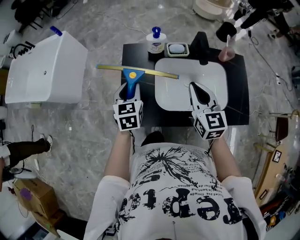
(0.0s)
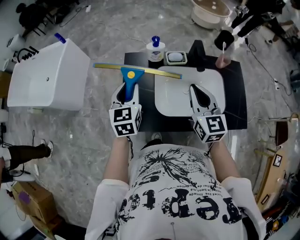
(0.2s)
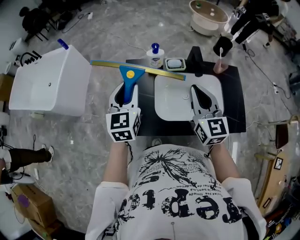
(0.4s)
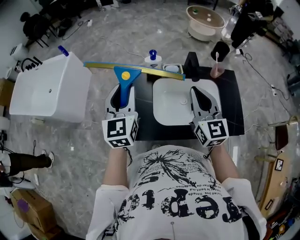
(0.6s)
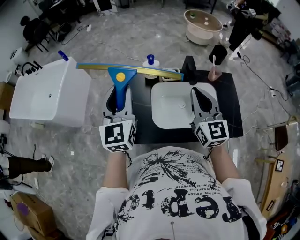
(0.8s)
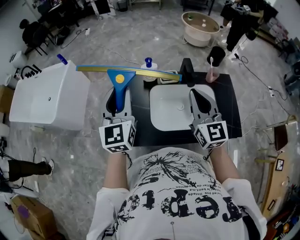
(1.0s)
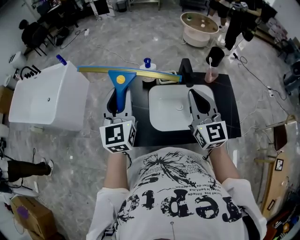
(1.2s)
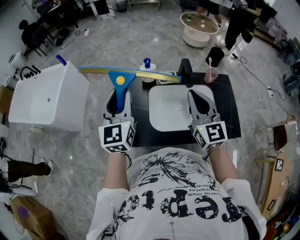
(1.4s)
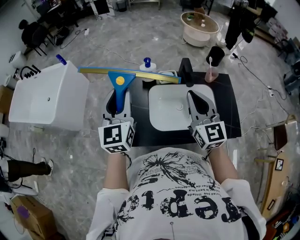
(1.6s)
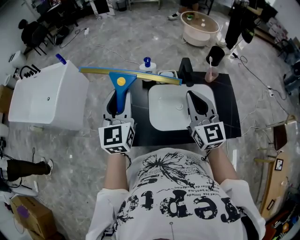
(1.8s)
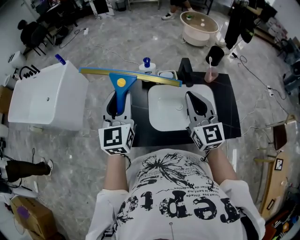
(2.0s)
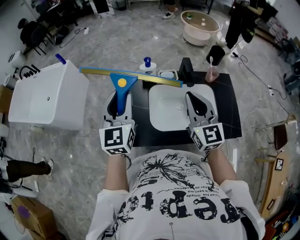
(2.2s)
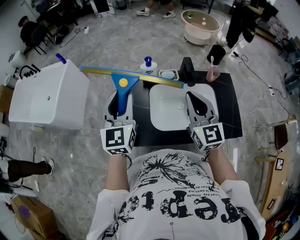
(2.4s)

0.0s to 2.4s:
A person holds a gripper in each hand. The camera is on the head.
0.0s to 1.2s: The left gripper is displaced upward by approximately 25 cm, and angles its fingers upward, by some 30 degrees, while the right gripper shifts roughly 15 cm upward.
1.2s to 2.4s: The grippers stay close to where they were, moving slightly.

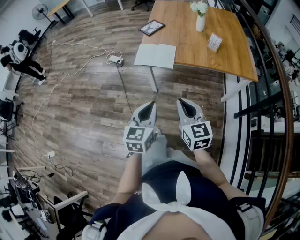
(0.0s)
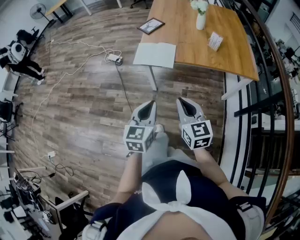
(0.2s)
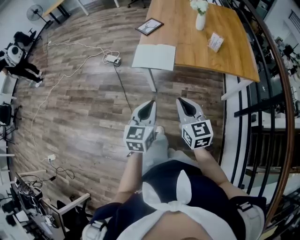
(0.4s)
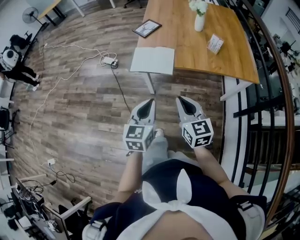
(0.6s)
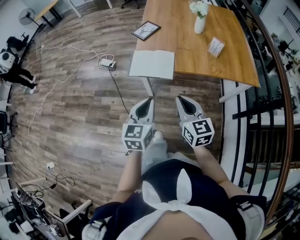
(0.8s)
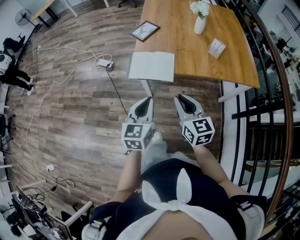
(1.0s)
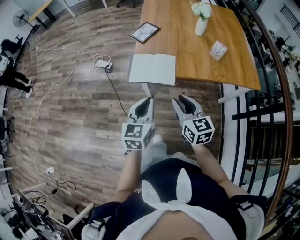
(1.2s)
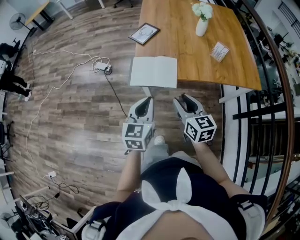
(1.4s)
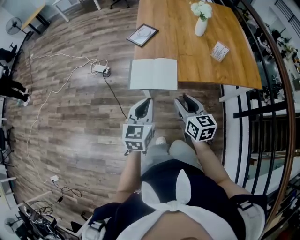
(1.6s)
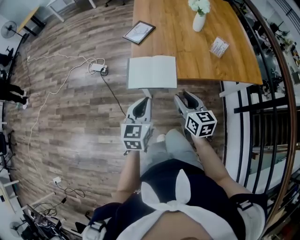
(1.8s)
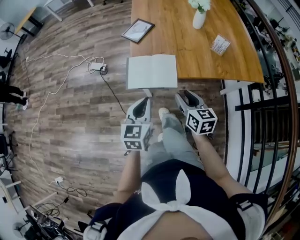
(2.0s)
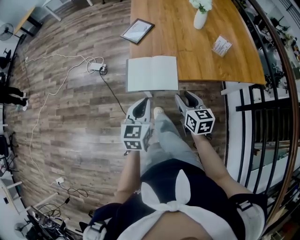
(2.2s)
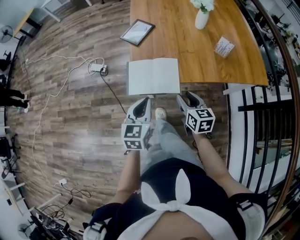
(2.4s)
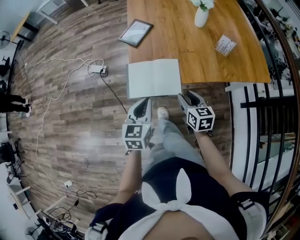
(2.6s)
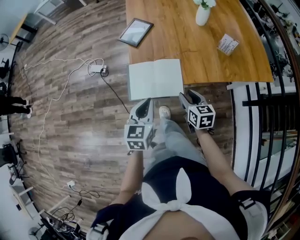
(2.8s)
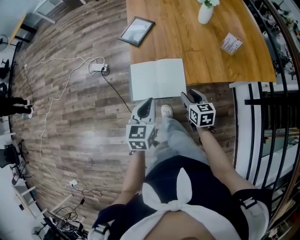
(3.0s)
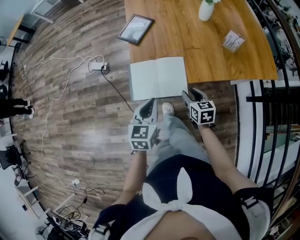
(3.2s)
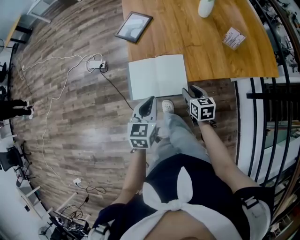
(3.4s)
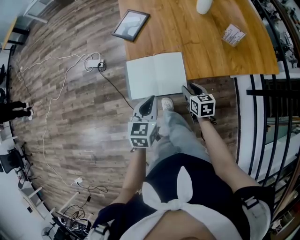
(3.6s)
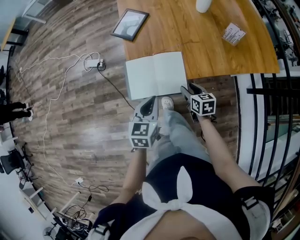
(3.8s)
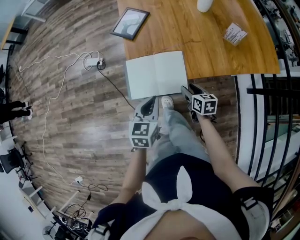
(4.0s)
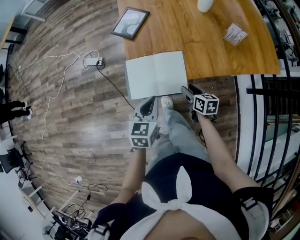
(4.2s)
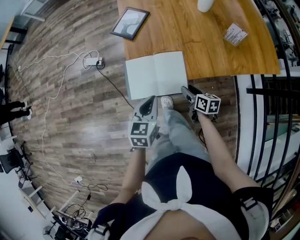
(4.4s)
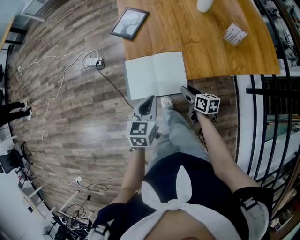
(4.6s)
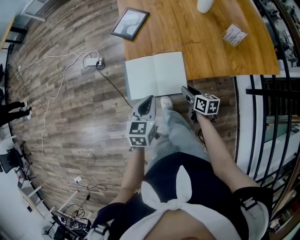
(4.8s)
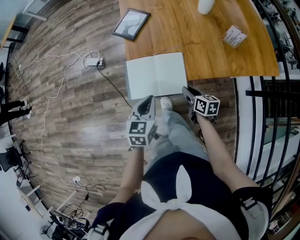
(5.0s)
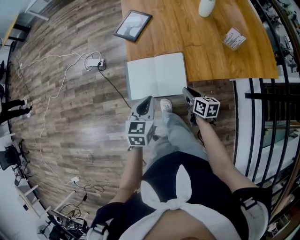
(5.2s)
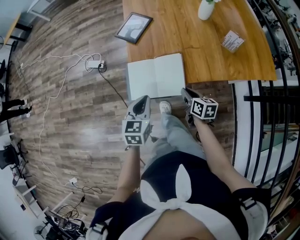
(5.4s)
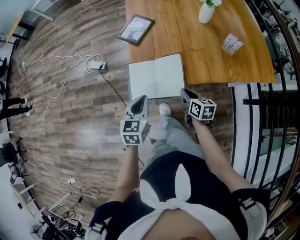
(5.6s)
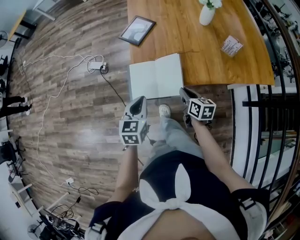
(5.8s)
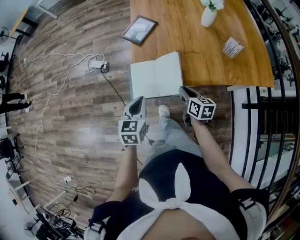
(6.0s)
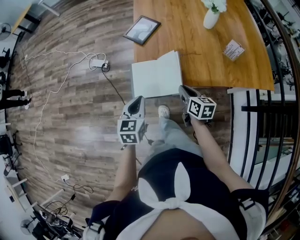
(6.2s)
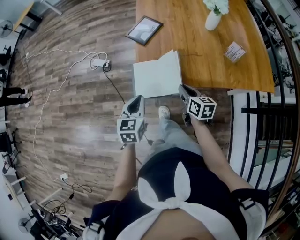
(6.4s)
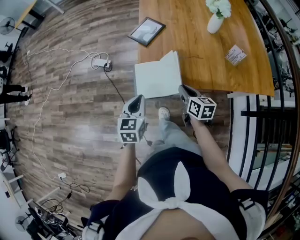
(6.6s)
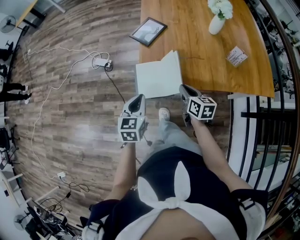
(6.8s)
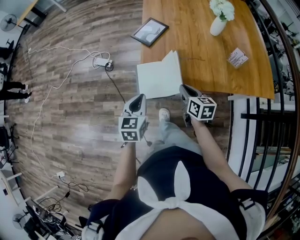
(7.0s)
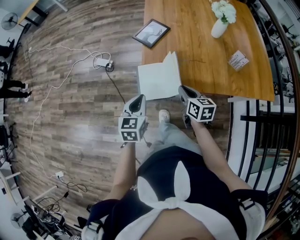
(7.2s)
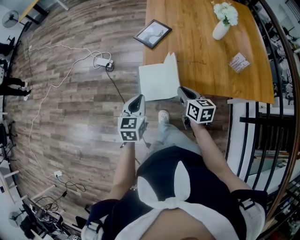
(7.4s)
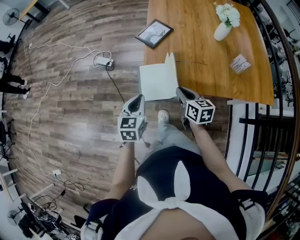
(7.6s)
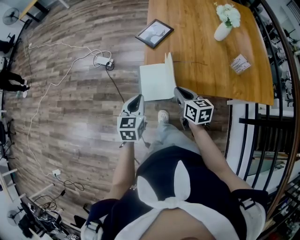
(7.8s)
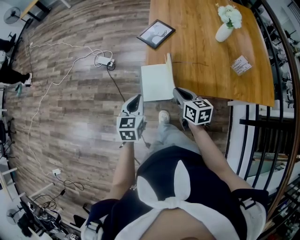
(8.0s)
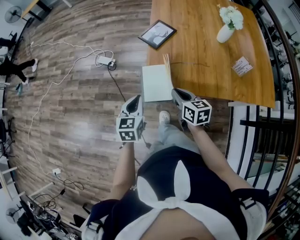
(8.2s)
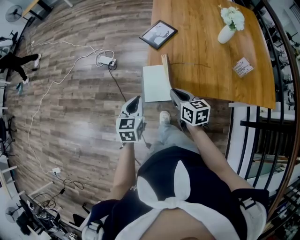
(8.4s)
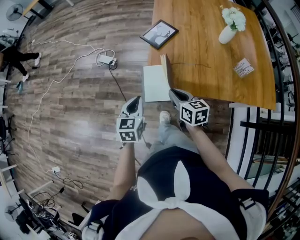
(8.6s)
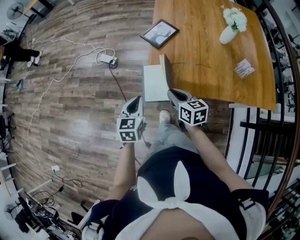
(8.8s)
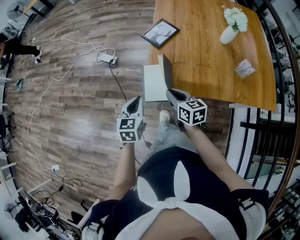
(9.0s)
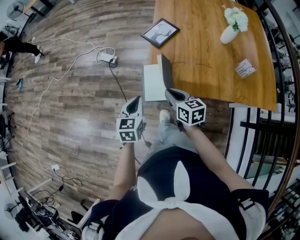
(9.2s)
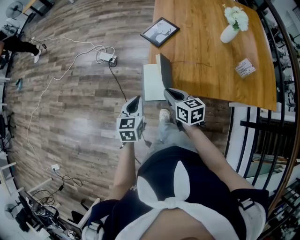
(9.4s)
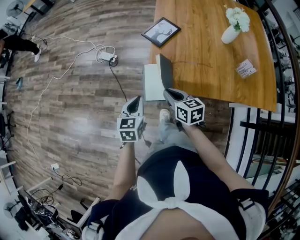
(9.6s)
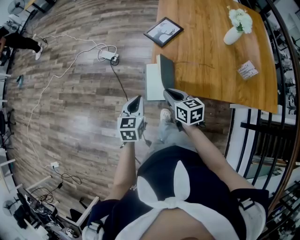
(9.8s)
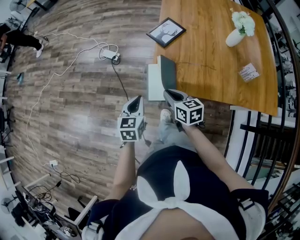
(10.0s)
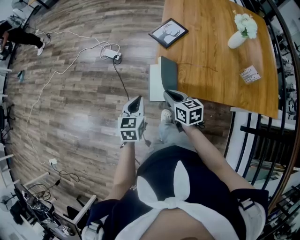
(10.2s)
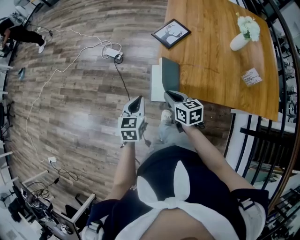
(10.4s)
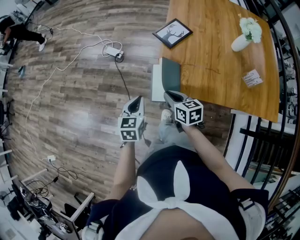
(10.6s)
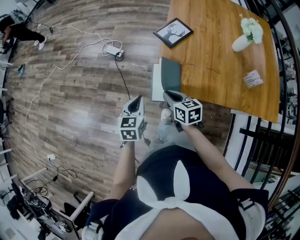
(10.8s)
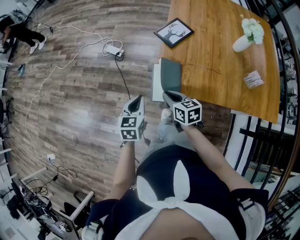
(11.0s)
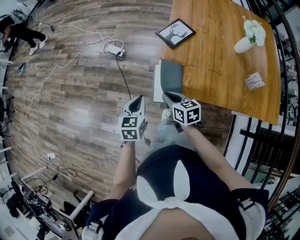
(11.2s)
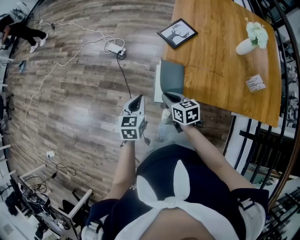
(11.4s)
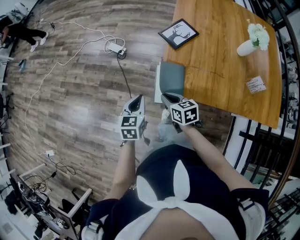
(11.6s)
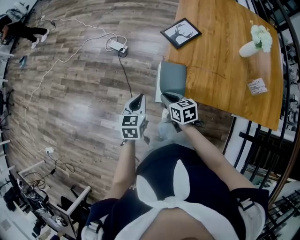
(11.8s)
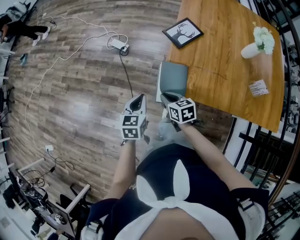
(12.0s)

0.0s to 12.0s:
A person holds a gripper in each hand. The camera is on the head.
0.0s to 1.6s: Both grippers move forward, roughly 25 cm. The right gripper opens its fingers.
1.6s to 3.0s: The right gripper goes some 20 cm downward and forward, while the left gripper shifts roughly 15 cm forward and downward.
3.0s to 4.4s: The left gripper moves downward, some 5 cm. Meanwhile the right gripper shifts roughly 10 cm downward, and turns by roughly 20 degrees.
4.4s to 6.0s: The left gripper shifts by roughly 5 cm; the right gripper heads upward, covering some 10 cm, and closes its fingers.
6.0s to 7.6s: The left gripper travels to the left by some 5 cm; the right gripper moves to the left and upward, some 10 cm.
7.6s to 9.0s: The right gripper moves to the left, about 5 cm.
9.0s to 10.4s: The right gripper ends up roughly 5 cm from where it was.
10.4s to 12.0s: The right gripper moves downward, about 5 cm.

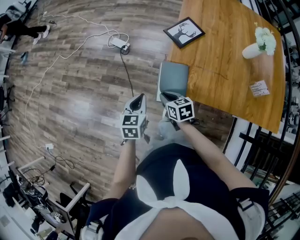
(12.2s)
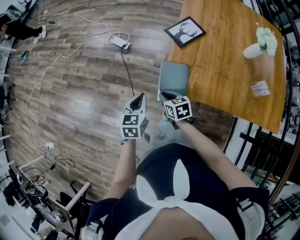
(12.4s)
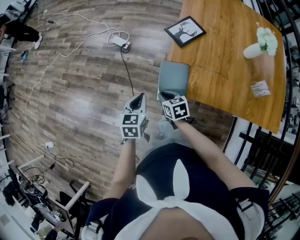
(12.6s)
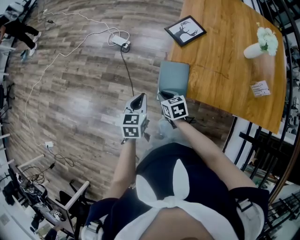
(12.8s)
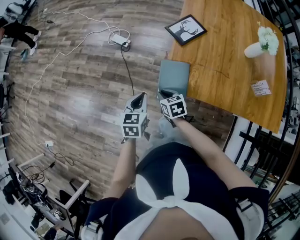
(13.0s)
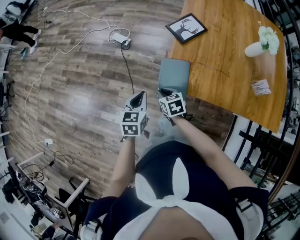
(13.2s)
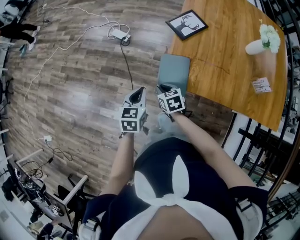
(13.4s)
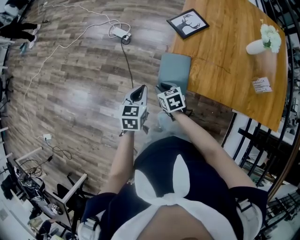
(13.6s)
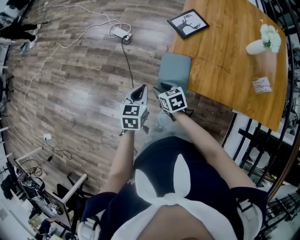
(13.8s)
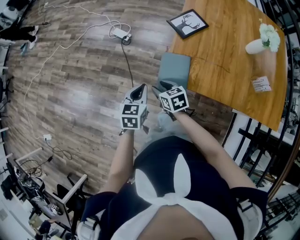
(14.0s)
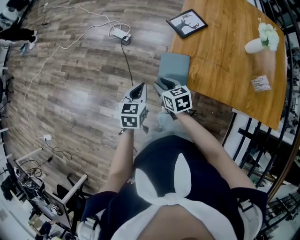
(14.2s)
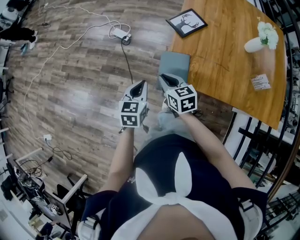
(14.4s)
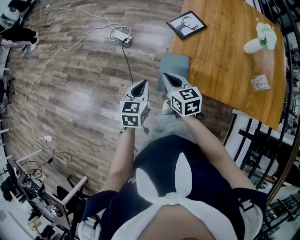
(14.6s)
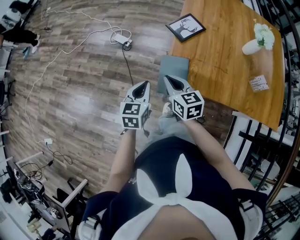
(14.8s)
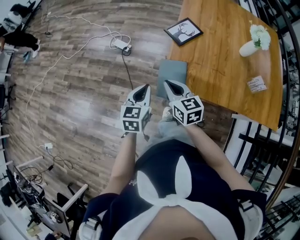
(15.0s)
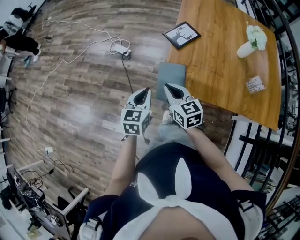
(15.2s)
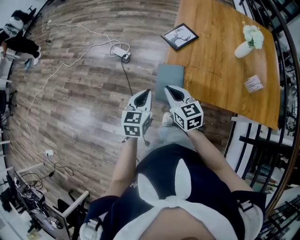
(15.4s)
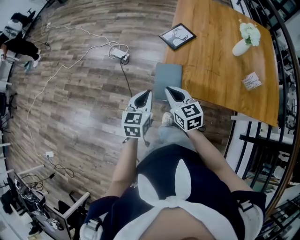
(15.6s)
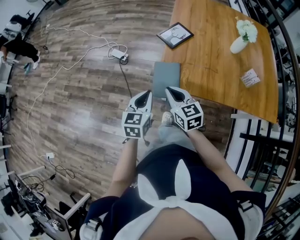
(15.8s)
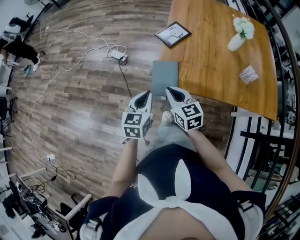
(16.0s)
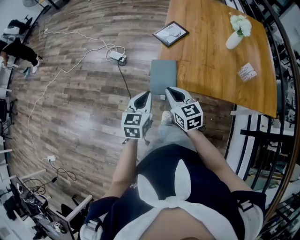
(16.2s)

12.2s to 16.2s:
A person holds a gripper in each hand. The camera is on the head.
12.2s to 13.6s: The grippers stay close to where they were, moving slightly.
13.6s to 14.8s: The left gripper goes roughly 5 cm upward, while the right gripper is displaced upward by some 15 cm, swivels some 30 degrees, and closes its fingers.
14.8s to 16.2s: Both grippers move backward, roughly 10 cm.

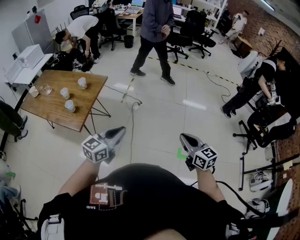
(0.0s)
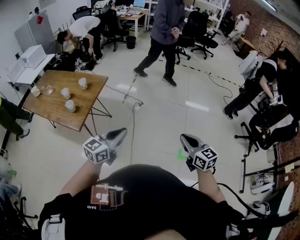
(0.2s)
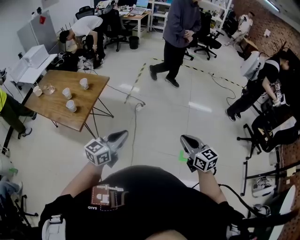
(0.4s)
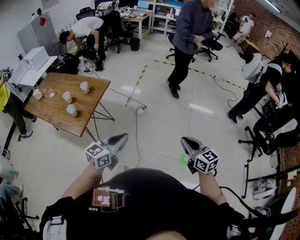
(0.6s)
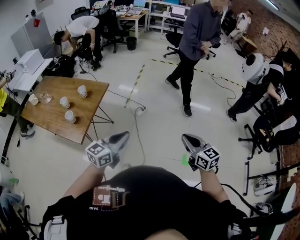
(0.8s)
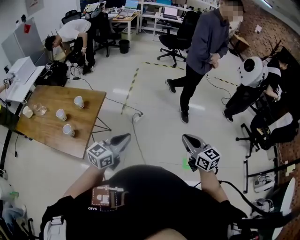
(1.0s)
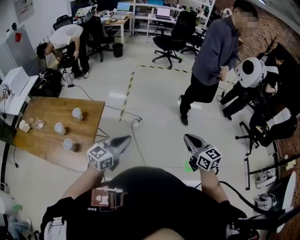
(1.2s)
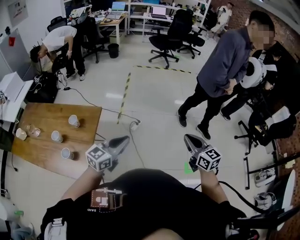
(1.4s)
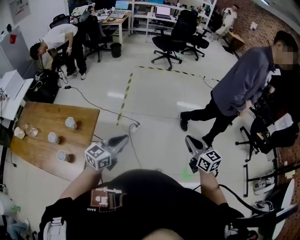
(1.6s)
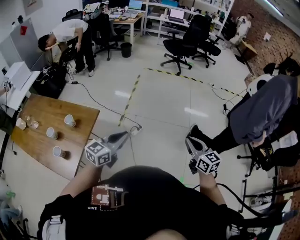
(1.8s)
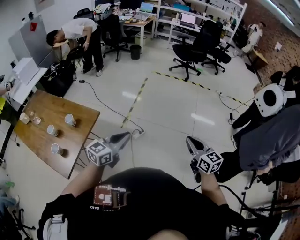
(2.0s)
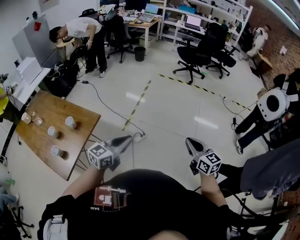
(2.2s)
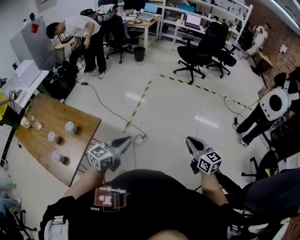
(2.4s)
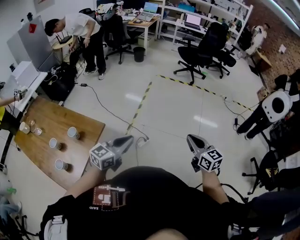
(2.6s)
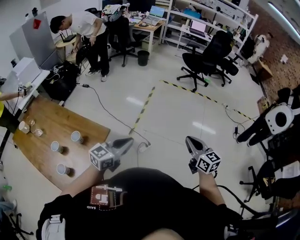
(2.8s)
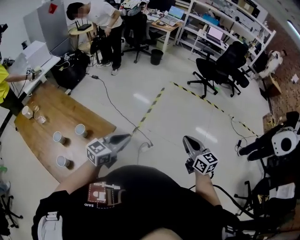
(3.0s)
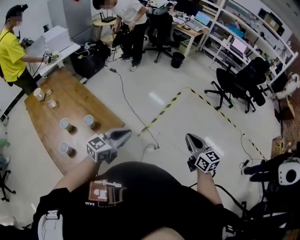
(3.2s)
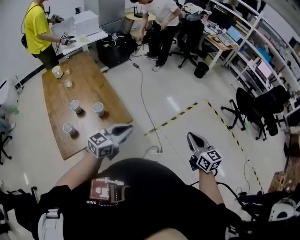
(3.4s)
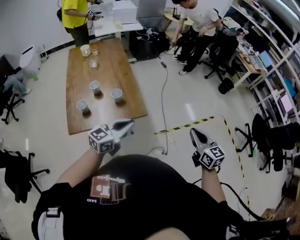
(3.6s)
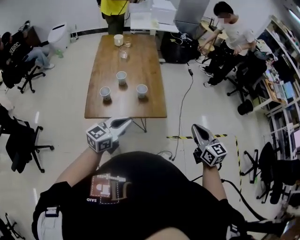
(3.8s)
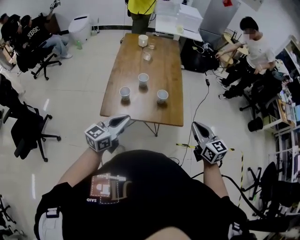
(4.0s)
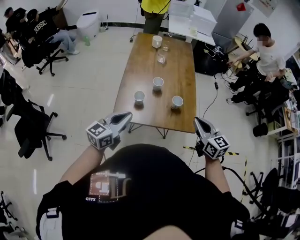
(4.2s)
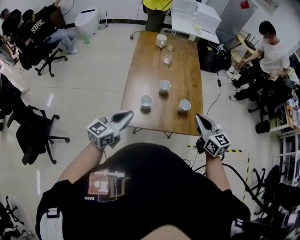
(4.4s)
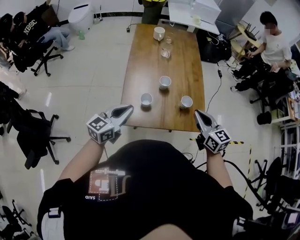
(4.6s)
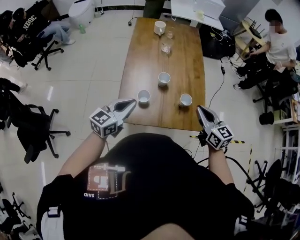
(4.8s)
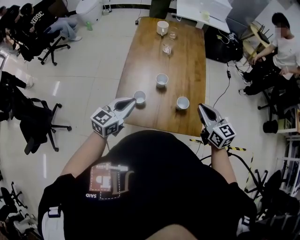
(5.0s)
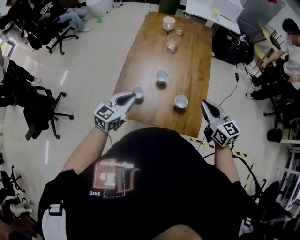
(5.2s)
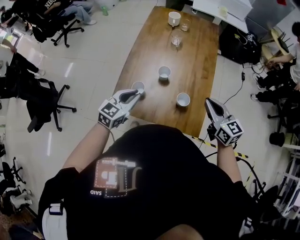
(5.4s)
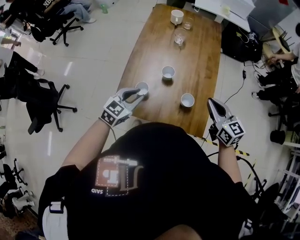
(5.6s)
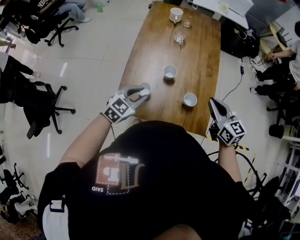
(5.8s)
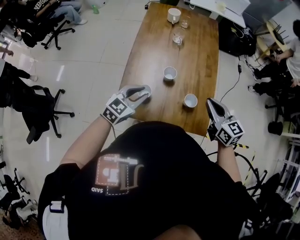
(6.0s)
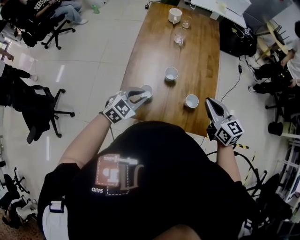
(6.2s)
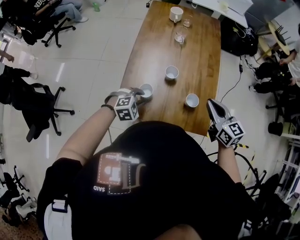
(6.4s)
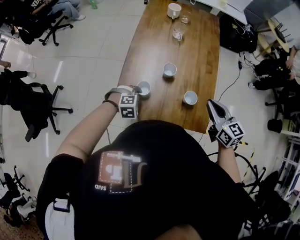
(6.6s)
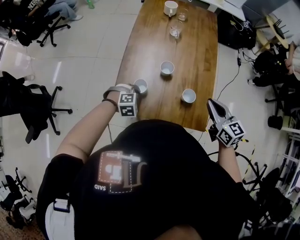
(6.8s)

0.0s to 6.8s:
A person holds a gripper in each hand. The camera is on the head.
0.0s to 1.4s: Both grippers travel together forward, roughly 25 cm.
1.4s to 2.8s: The two grippers go roughly 25 cm forward.
2.8s to 4.0s: The right gripper moves approximately 40 cm, and swivels roughly 70 degrees, while the left gripper ends up approximately 30 cm from where it was, and swivels some 80 degrees.
4.0s to 5.4s: The right gripper moves forward, about 25 cm. The left gripper shifts roughly 20 cm forward and downward, and swivels some 30 degrees.
5.4s to 6.8s: The left gripper shifts about 15 cm downward, and tips its fingers downward by about 40 degrees.
